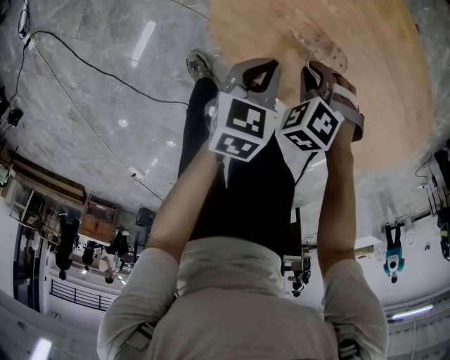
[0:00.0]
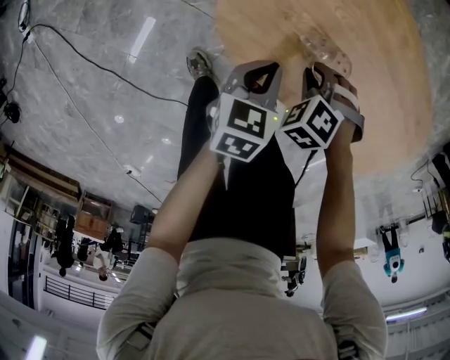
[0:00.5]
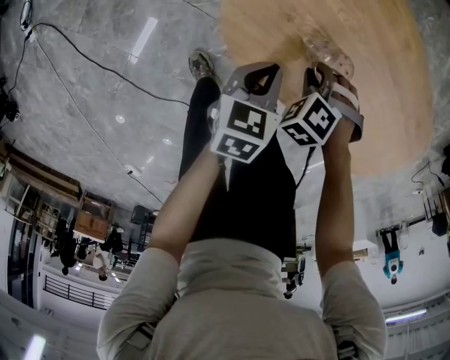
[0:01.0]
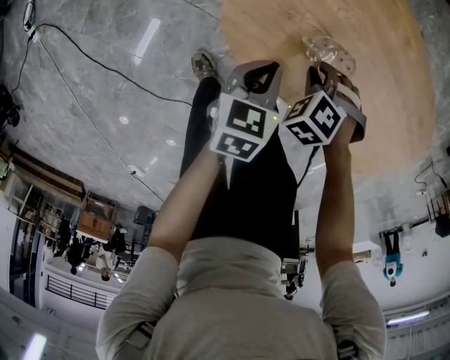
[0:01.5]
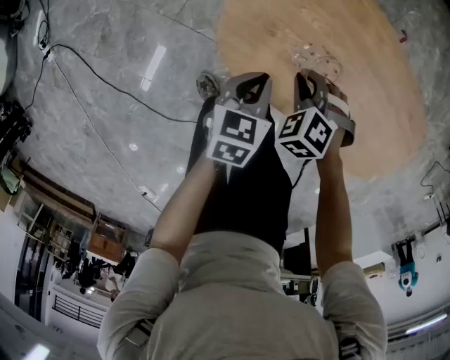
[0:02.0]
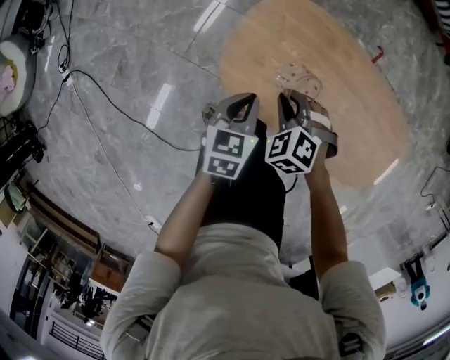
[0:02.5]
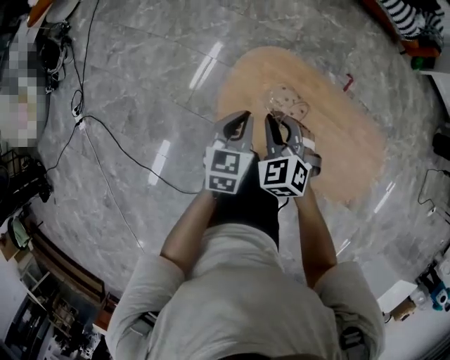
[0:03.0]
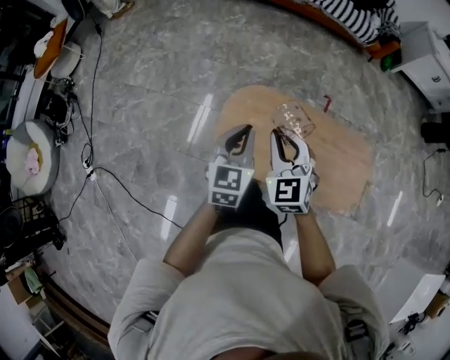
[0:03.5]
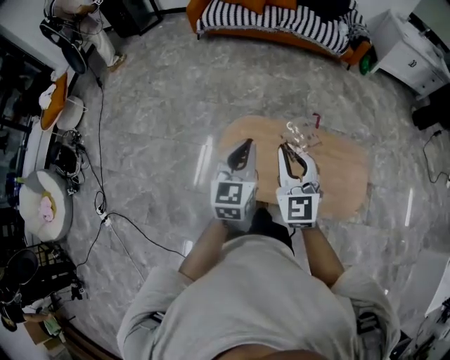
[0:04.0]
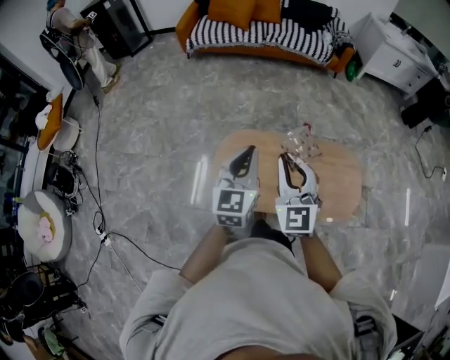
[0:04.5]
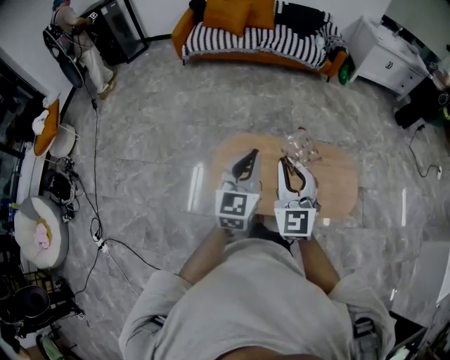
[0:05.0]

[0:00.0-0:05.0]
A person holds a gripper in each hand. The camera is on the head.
0.0 to 2.5 s: Both grippers move upward, about 15 cm. The right gripper changes its angle by roughly 20 degrees.
2.5 to 5.0 s: Both grippers travel together upward, roughly 40 cm. The left gripper tips its fingers upward by some 40 degrees; the right gripper angles its fingers upward, by about 60 degrees.

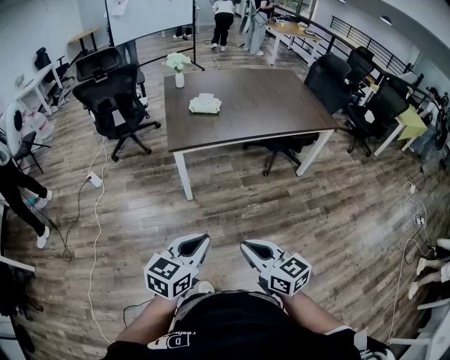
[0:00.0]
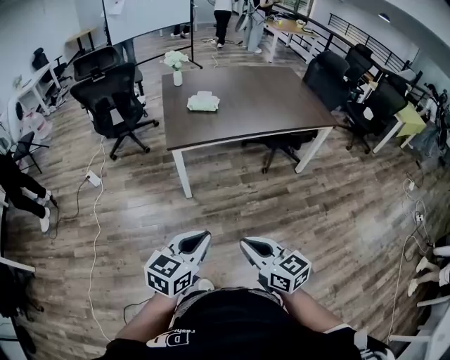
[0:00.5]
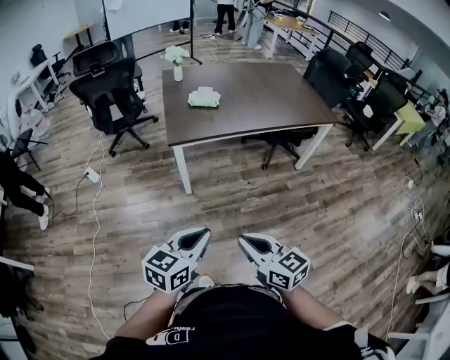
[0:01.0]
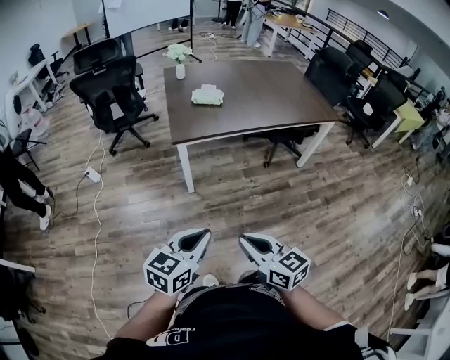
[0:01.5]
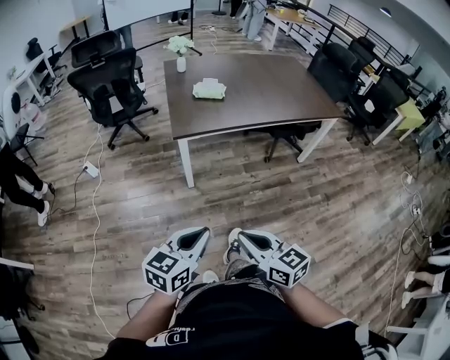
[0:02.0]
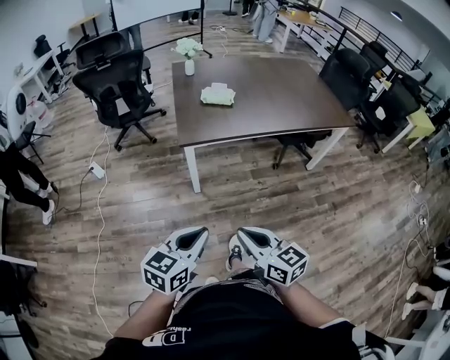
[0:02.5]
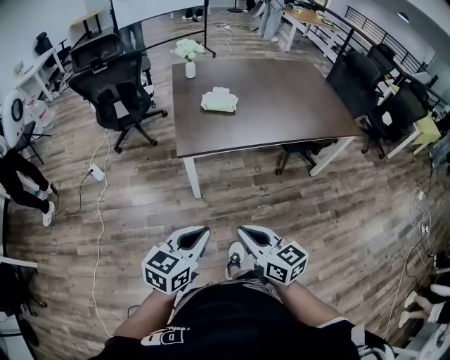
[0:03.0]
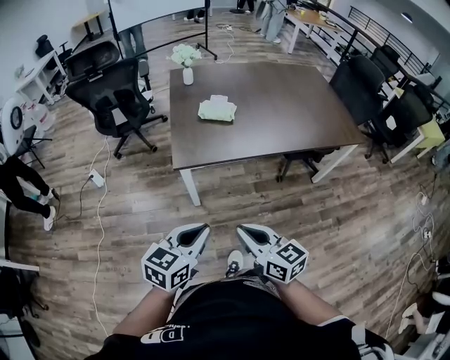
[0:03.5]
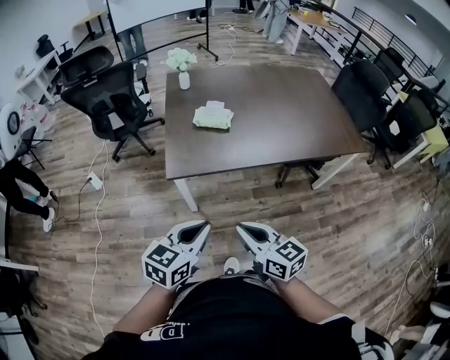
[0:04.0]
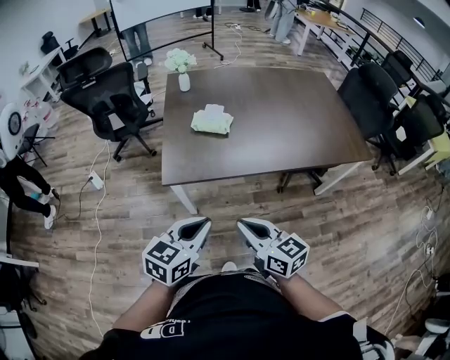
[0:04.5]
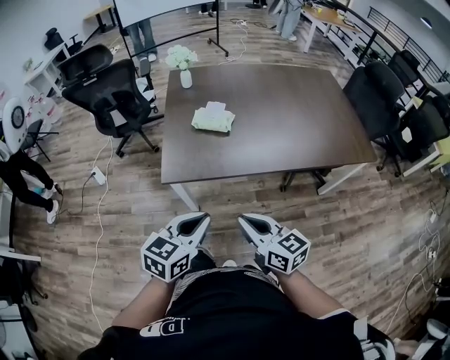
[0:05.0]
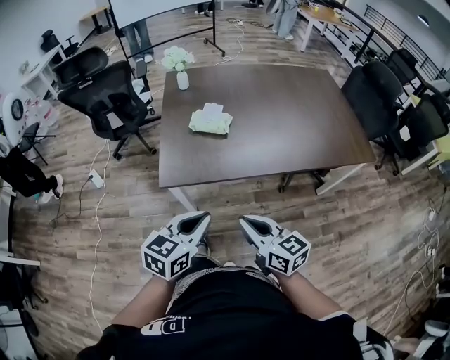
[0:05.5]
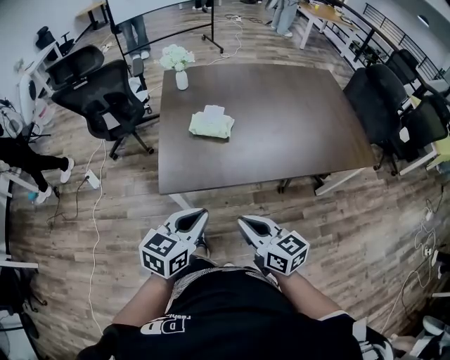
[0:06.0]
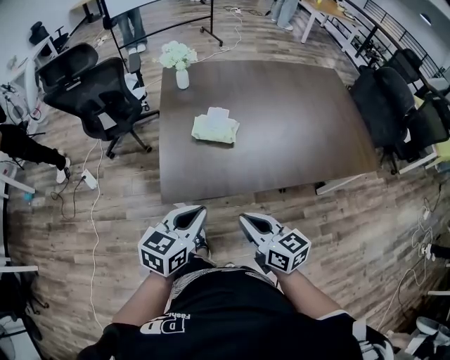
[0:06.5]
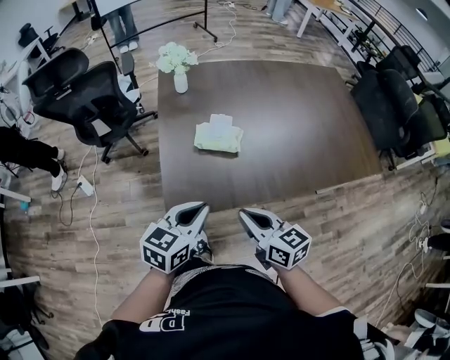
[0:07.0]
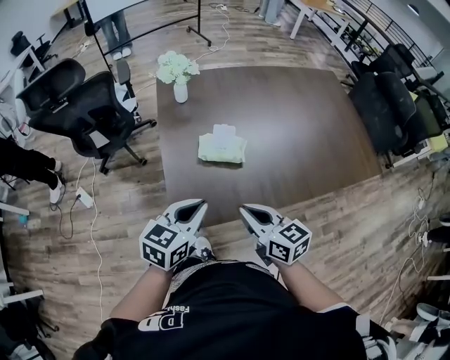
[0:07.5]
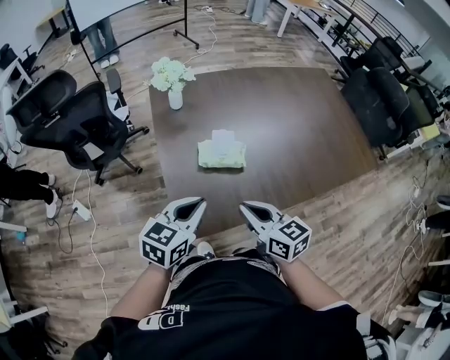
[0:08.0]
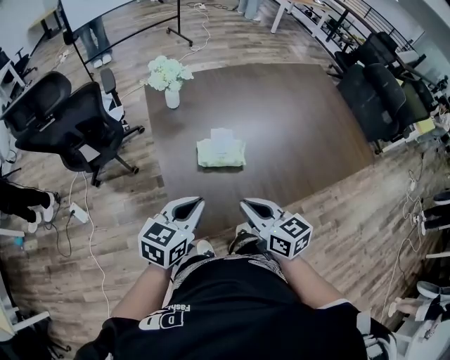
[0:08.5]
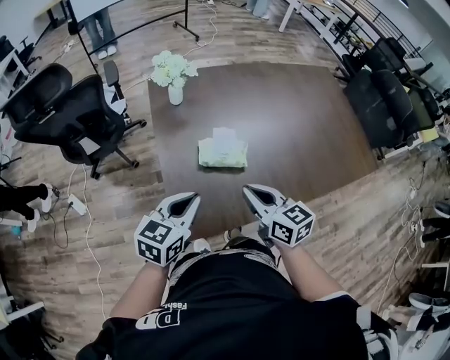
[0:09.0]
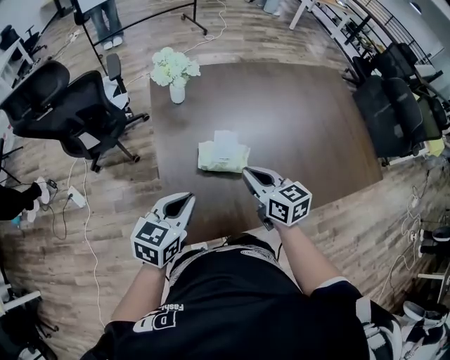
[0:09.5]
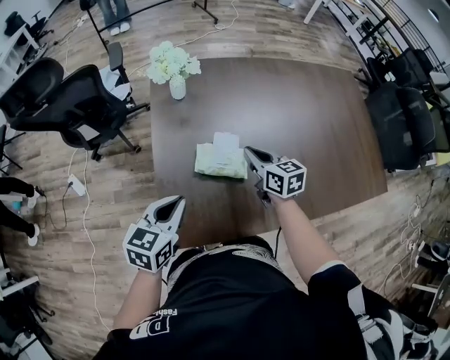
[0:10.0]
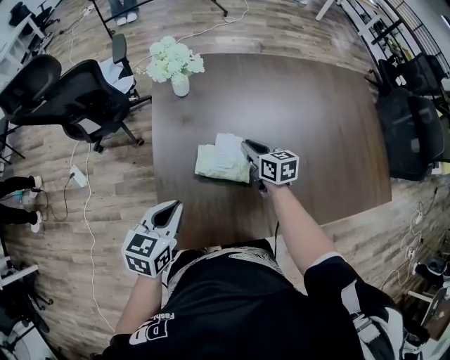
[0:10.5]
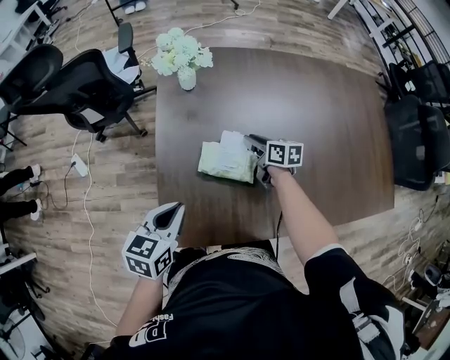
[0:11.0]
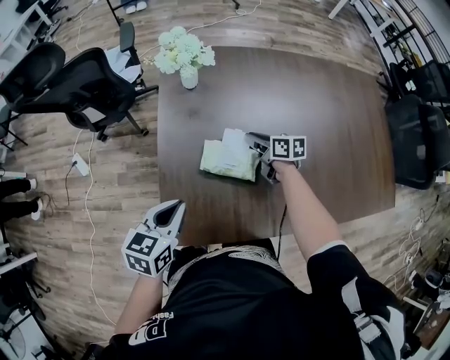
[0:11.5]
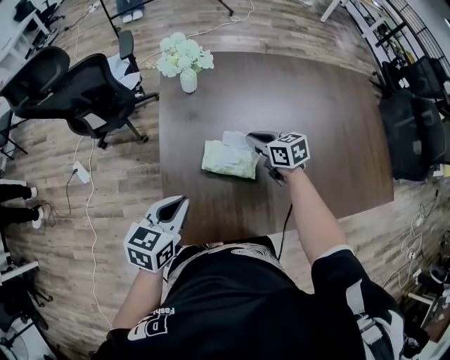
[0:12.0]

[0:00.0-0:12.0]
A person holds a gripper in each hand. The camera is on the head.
0.0 to 2.0 s: The grippers both shift to the left by roughly 5 cm.
2.0 to 4.0 s: The grippers both shift forward by some 25 cm.
4.0 to 6.0 s: The grippers both shift forward by roughly 15 cm.
6.0 to 8.0 s: Both grippers travel together forward and to the left, about 25 cm.
8.0 to 10.0 s: The right gripper is displaced forward by some 25 cm. Meanwhile the left gripper goes approximately 10 cm forward.
10.0 to 12.0 s: The right gripper shifts about 10 cm forward and downward.

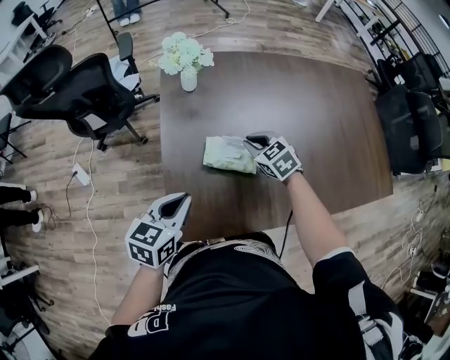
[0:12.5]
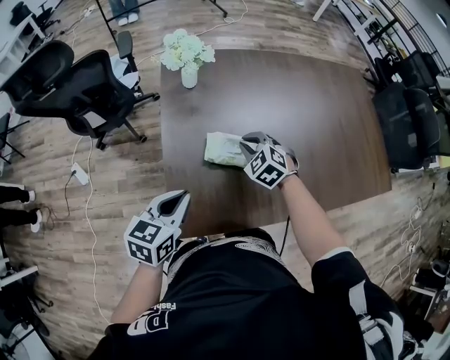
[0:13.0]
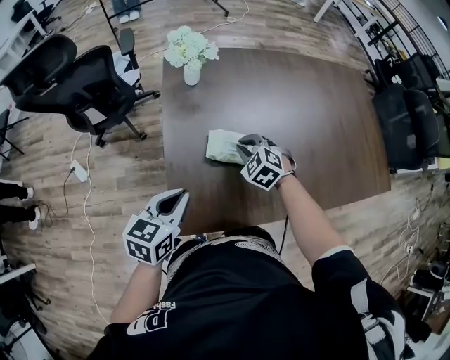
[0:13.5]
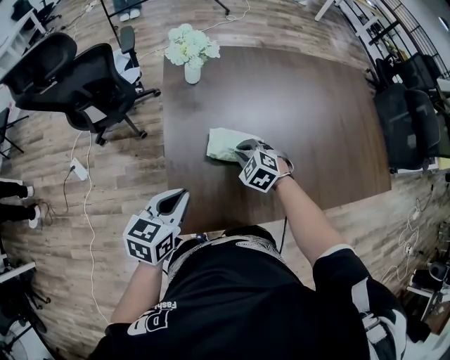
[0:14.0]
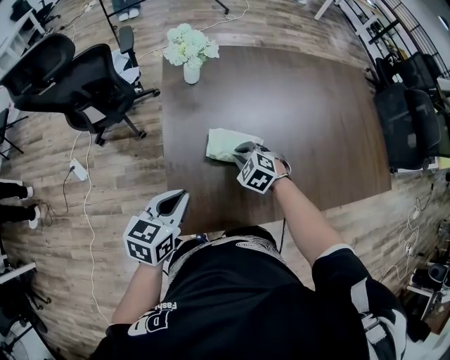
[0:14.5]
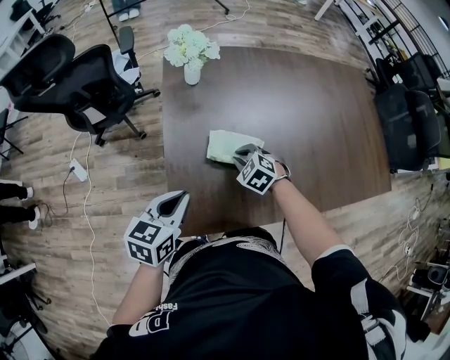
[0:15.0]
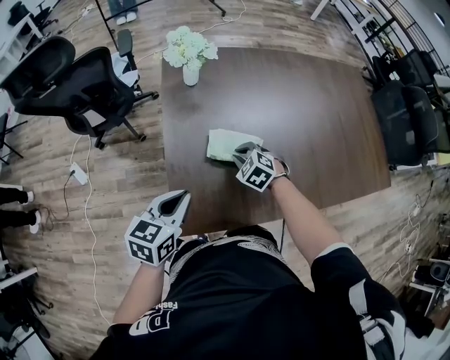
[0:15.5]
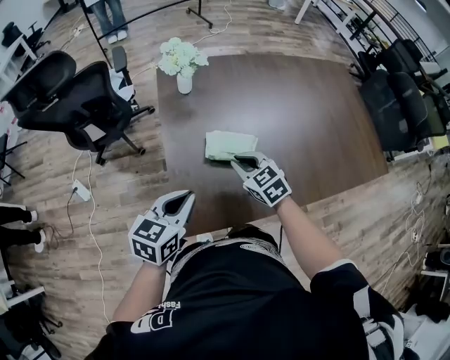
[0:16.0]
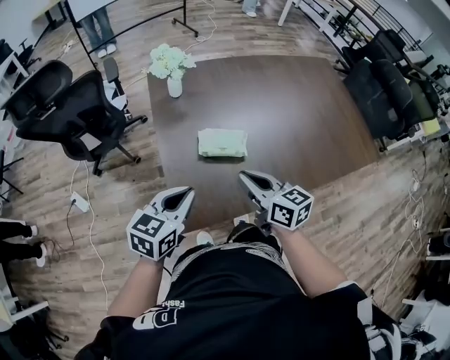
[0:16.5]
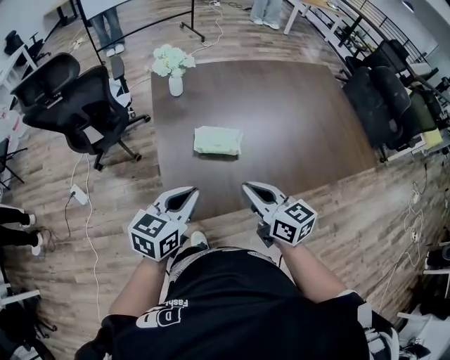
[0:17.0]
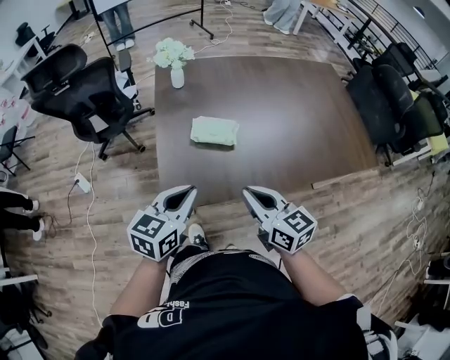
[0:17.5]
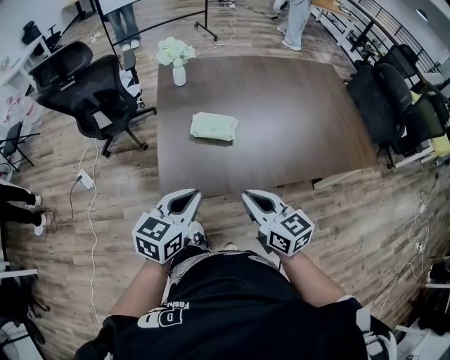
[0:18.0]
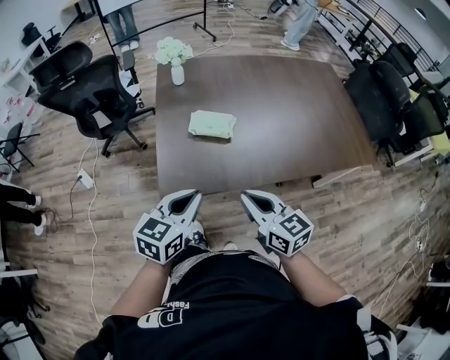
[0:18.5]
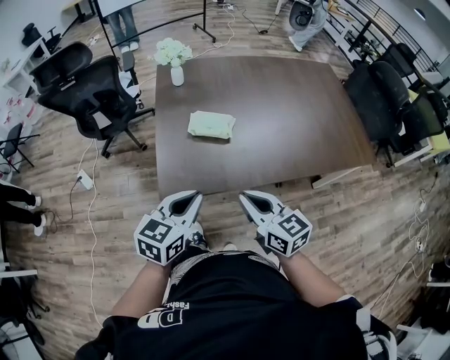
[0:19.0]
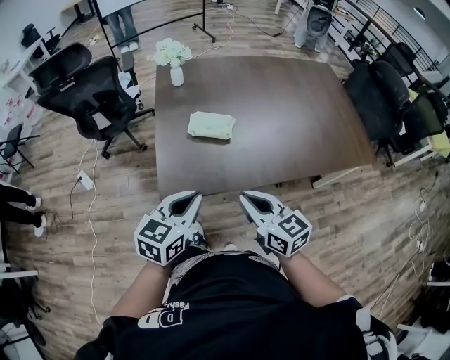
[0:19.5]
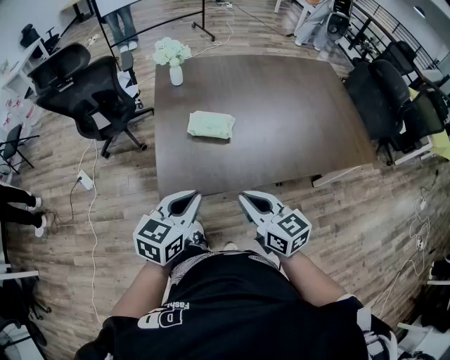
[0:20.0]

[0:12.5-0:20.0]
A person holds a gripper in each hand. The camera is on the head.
12.5 to 14.5 s: The right gripper moves backward and downward, some 10 cm, and changes its angle by about 30 degrees.
14.5 to 16.5 s: The left gripper changes place by roughly 5 cm. Meanwhile the right gripper shifts roughly 20 cm upward and backward, and points its fingers about 40 degrees further upward.
16.5 to 18.0 s: Both grippers travel together backward and to the right, approximately 15 cm.
18.0 to 20.0 s: The grippers move only a little.

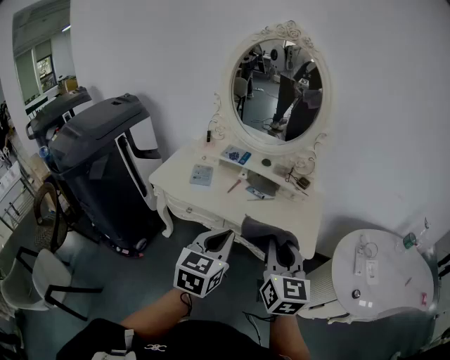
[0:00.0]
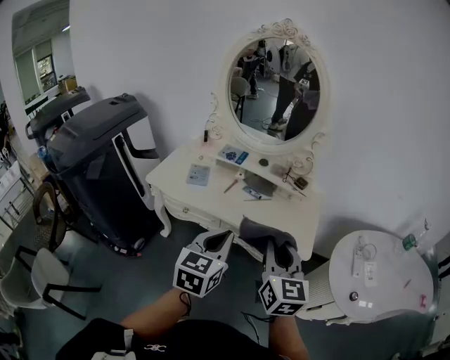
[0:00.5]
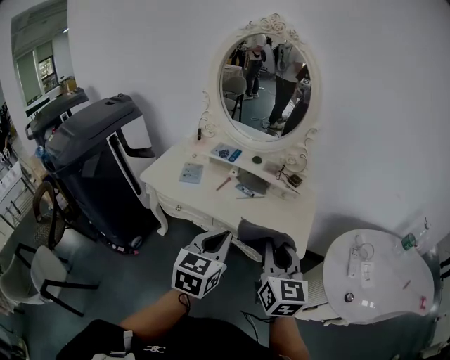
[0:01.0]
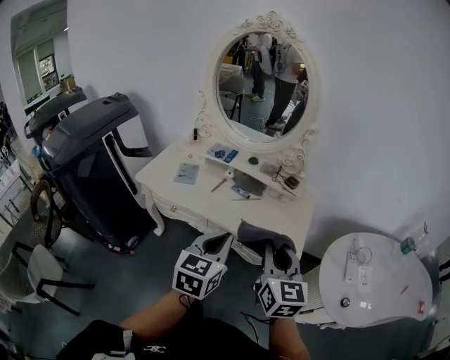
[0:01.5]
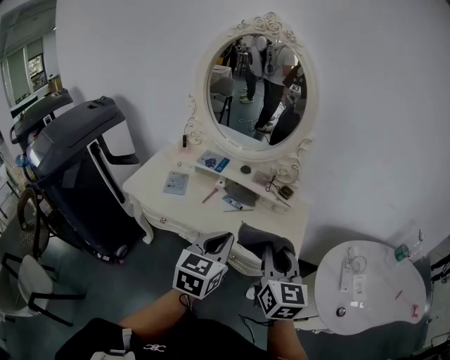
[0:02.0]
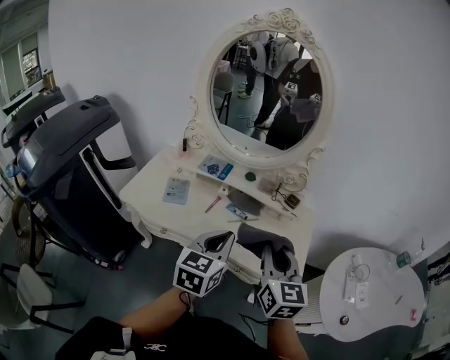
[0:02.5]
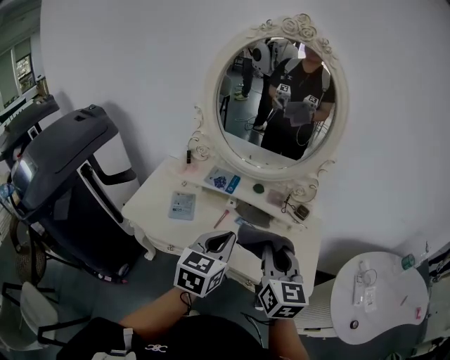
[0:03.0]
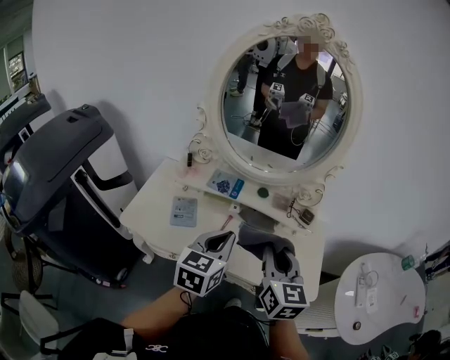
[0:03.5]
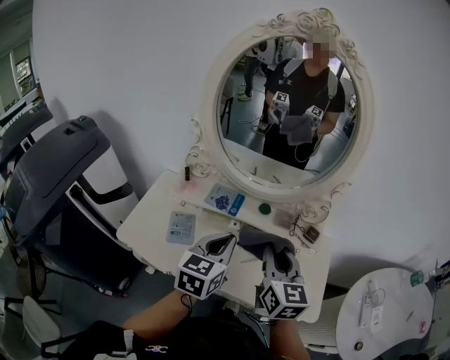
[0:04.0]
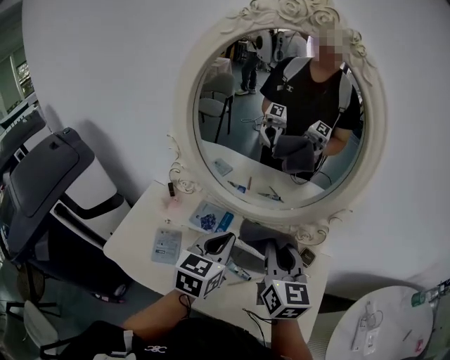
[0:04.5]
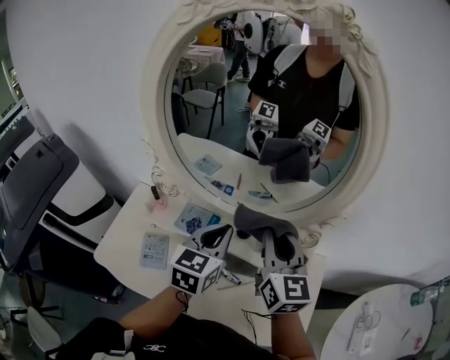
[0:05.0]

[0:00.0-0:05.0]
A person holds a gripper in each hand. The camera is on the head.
0.0 to 2.5 s: Both grippers travel together forward, some 15 cm.
2.5 to 5.0 s: The two grippers go about 35 cm forward.
